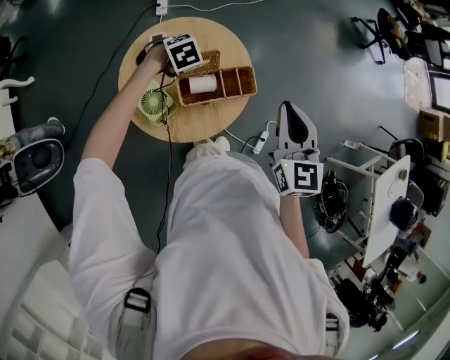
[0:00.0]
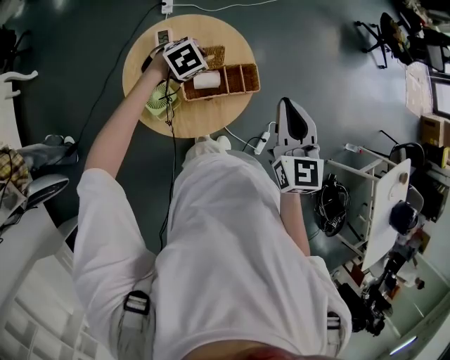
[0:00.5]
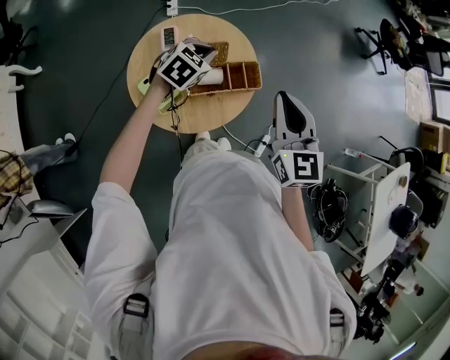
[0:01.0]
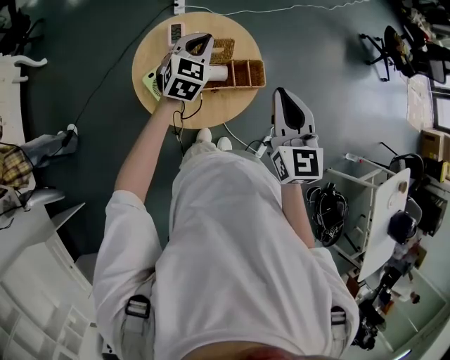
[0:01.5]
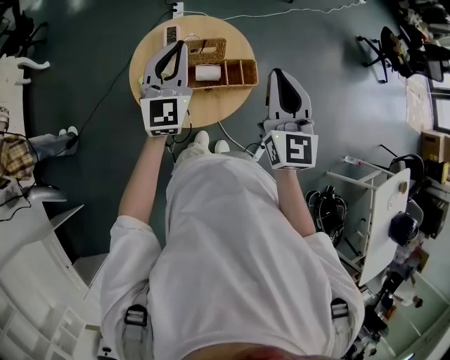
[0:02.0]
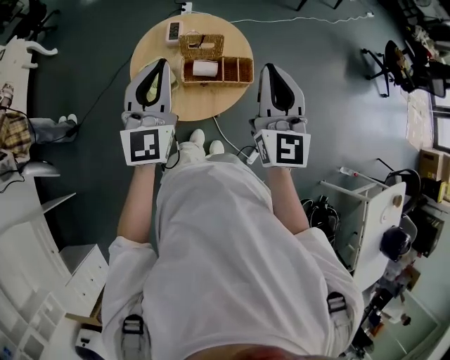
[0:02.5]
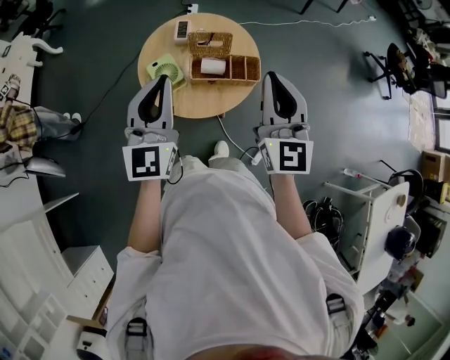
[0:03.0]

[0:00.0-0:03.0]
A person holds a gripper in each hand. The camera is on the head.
0:00.0 to 0:01.5: The right gripper moves about 5 cm. The left gripper travels upward by about 15 cm, and points its fingers roughly 50 degrees further upward.
0:01.5 to 0:03.0: The left gripper travels backward and upward by approximately 30 cm, and changes its angle by about 40 degrees; the right gripper heads backward and upward, covering roughly 10 cm.

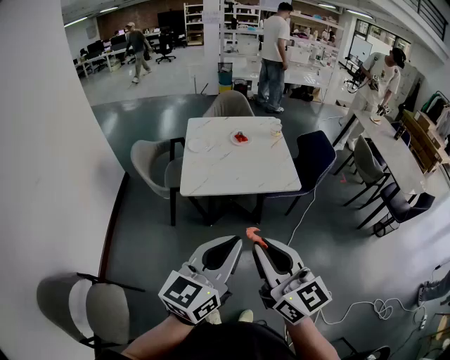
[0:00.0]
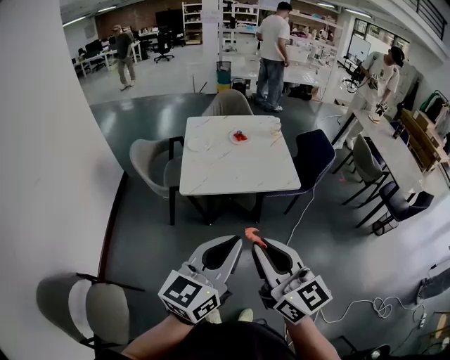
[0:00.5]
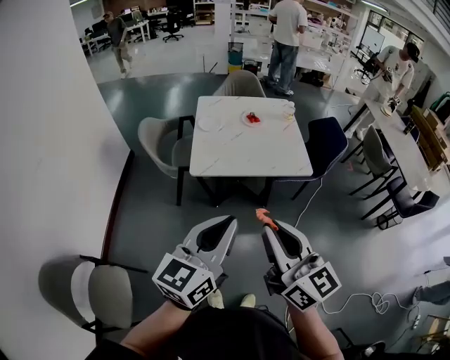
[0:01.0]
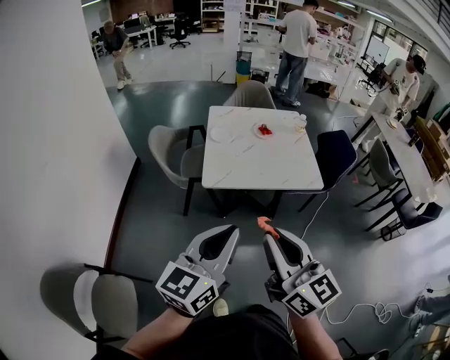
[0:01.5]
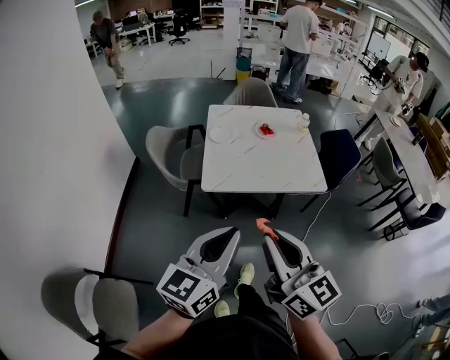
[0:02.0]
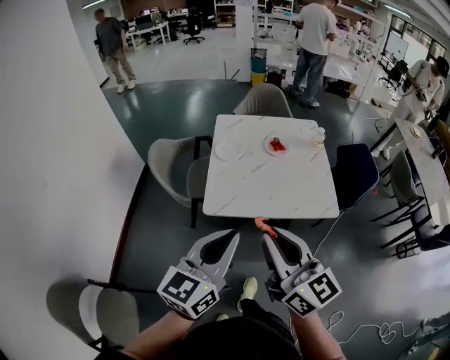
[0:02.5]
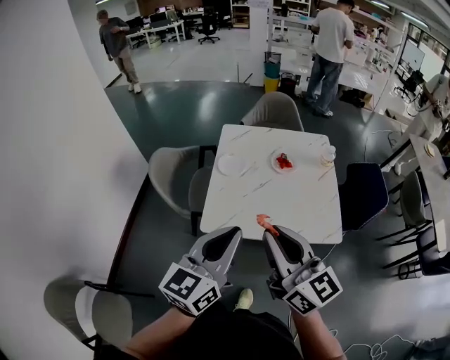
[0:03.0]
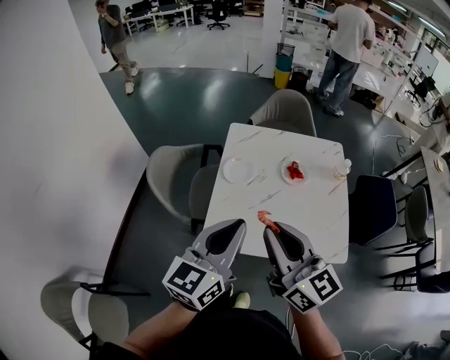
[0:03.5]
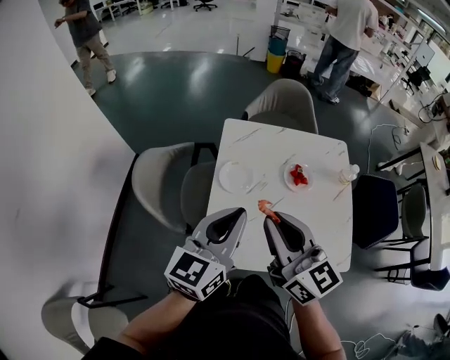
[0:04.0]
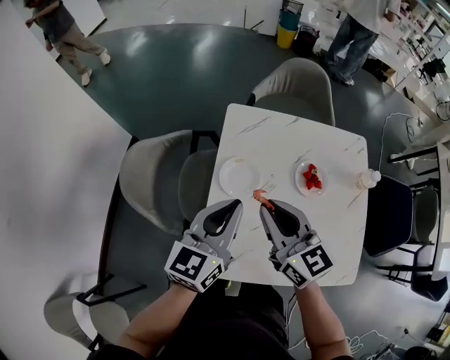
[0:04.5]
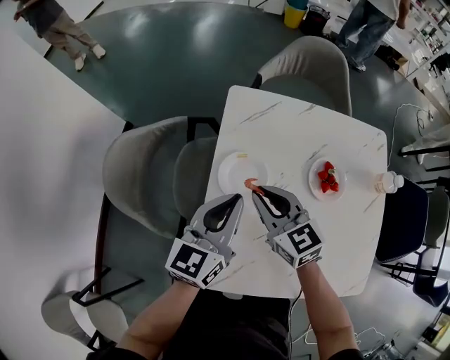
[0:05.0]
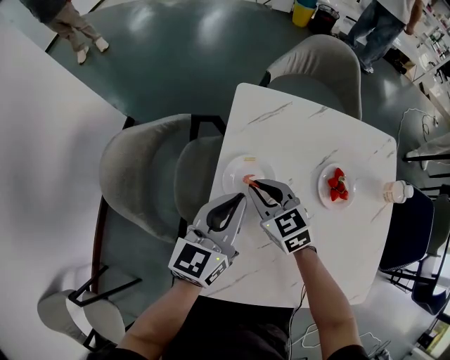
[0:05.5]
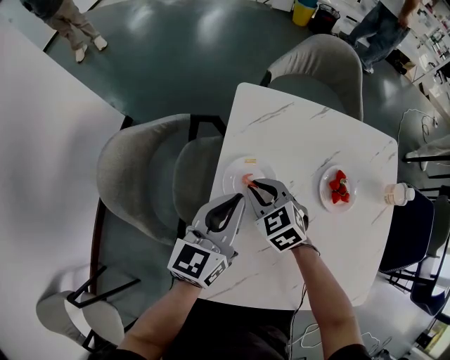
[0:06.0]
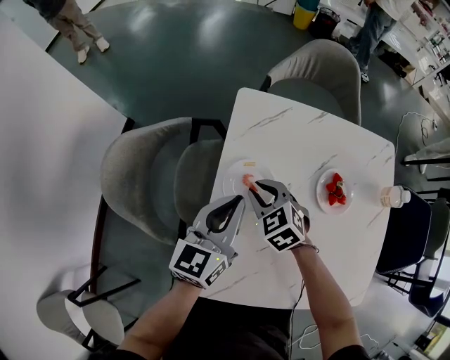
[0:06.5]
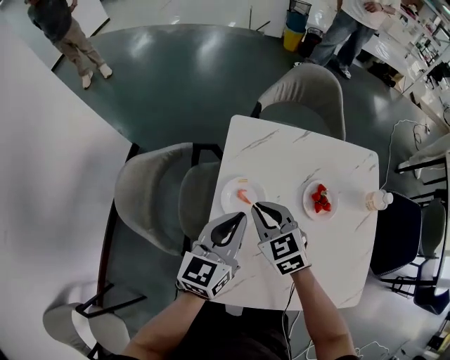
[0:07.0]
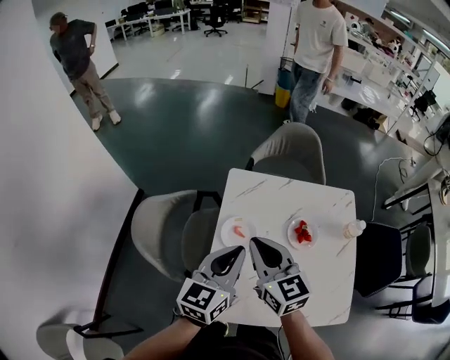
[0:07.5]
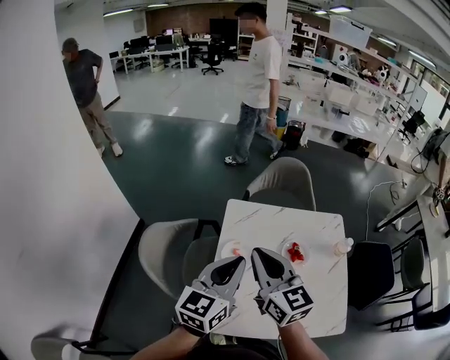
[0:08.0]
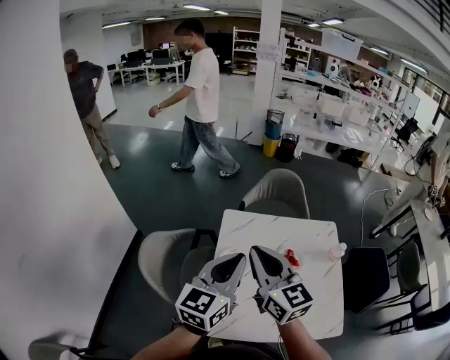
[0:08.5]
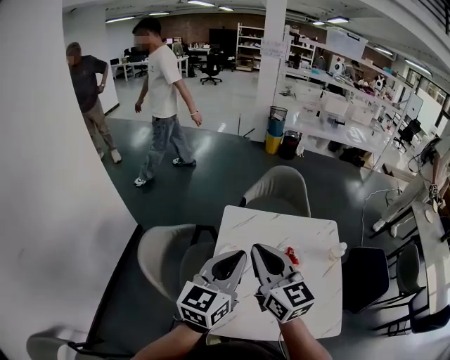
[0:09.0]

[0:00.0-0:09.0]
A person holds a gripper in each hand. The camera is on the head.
0:00.0 to 0:02.0: Both grippers travel together to the left and forward, some 15 cm.
0:02.0 to 0:04.5: The pair of grippers is taken forward, roughly 60 cm. The right gripper rotates roughly 20 degrees.
0:04.5 to 0:07.0: The right gripper goes about 15 cm downward and forward, and swivels some 30 degrees; the left gripper heads downward and forward, covering approximately 10 cm.
0:07.0 to 0:09.0: The grippers both shift upward by roughly 30 cm. The right gripper angles its fingers upward, by roughly 30 degrees.

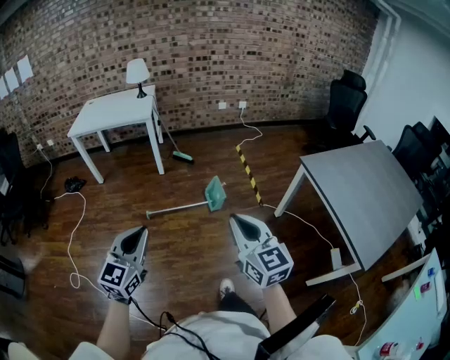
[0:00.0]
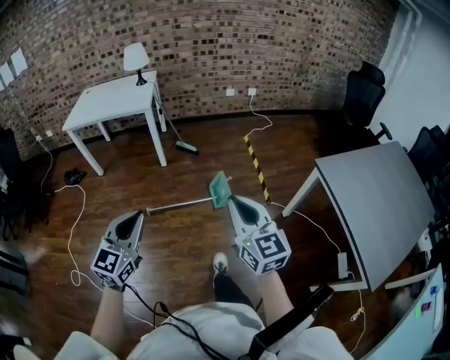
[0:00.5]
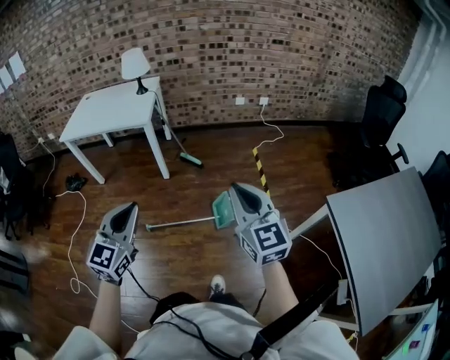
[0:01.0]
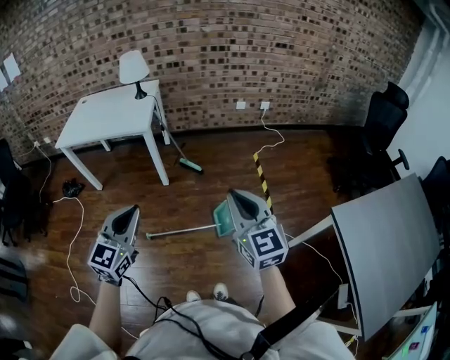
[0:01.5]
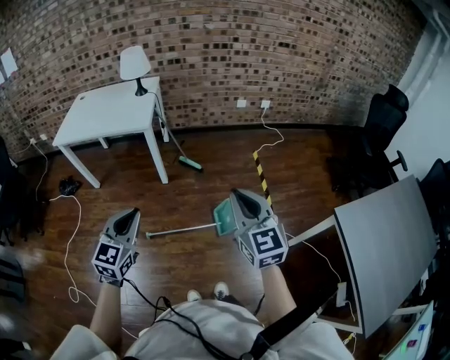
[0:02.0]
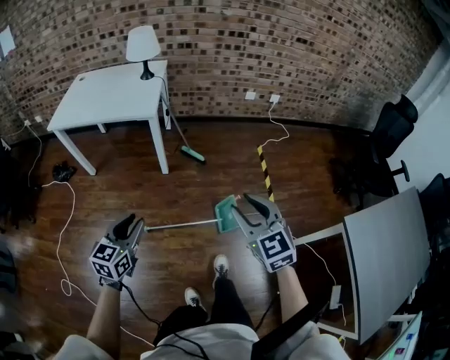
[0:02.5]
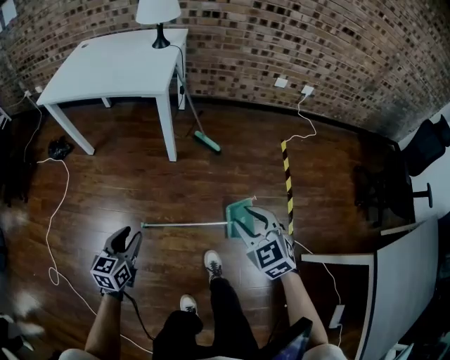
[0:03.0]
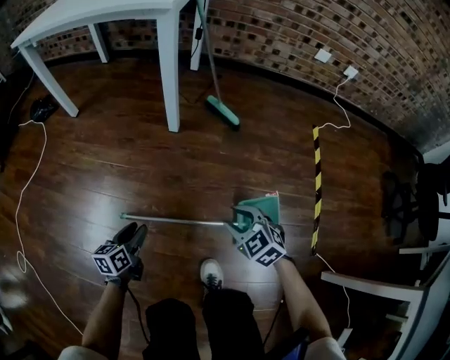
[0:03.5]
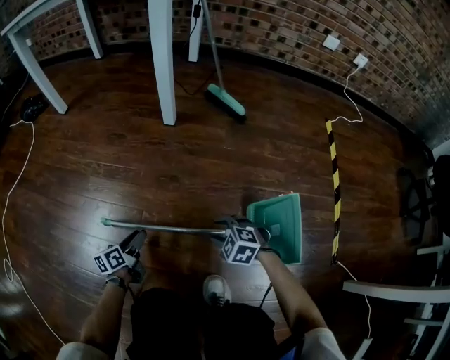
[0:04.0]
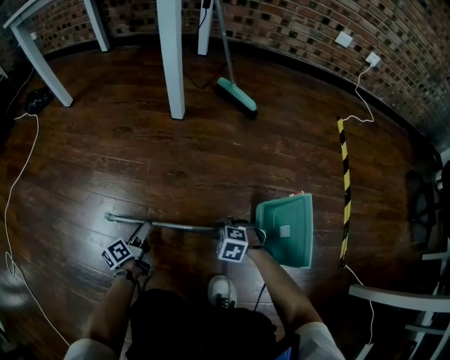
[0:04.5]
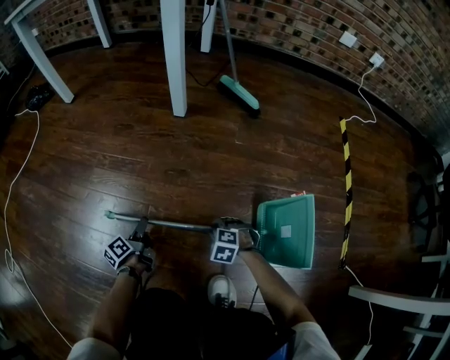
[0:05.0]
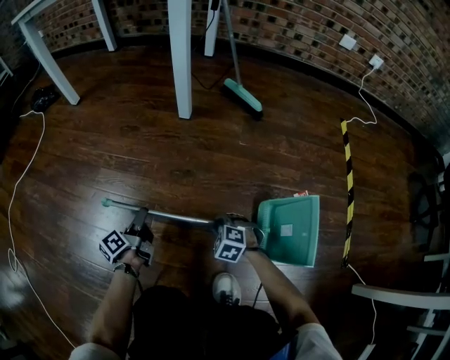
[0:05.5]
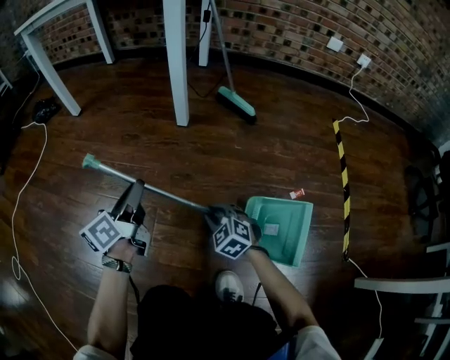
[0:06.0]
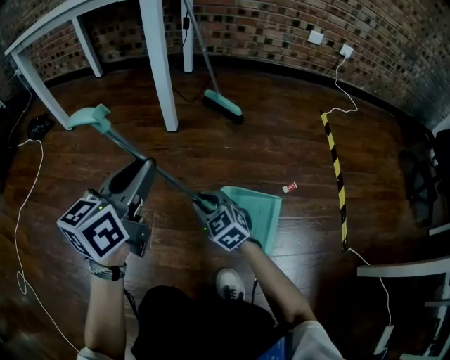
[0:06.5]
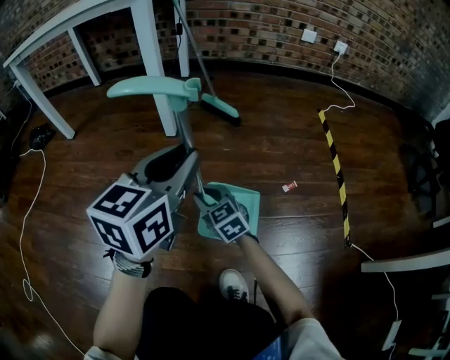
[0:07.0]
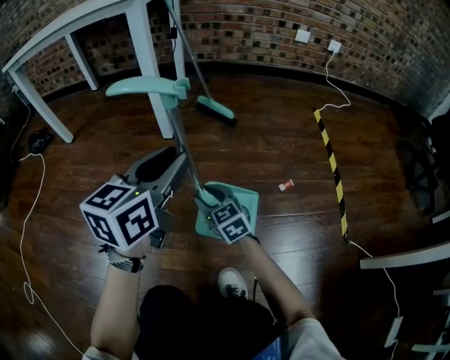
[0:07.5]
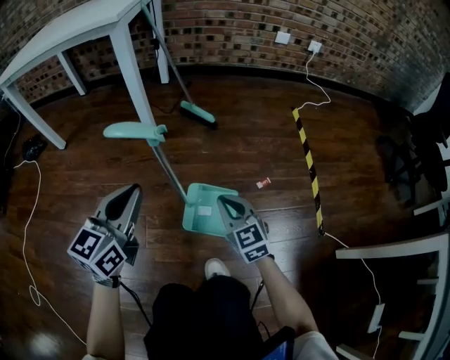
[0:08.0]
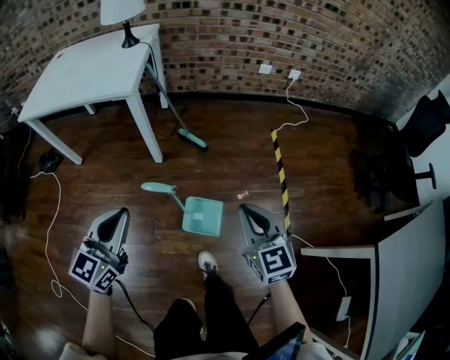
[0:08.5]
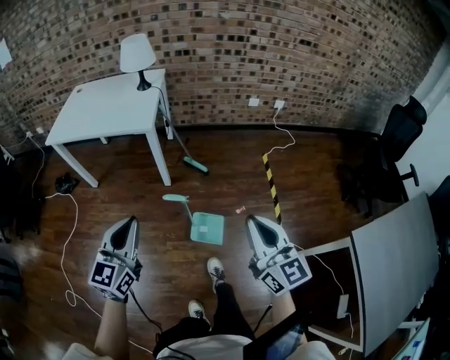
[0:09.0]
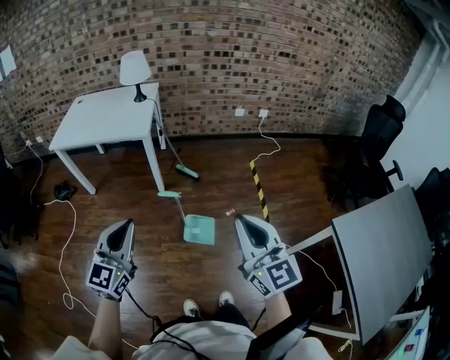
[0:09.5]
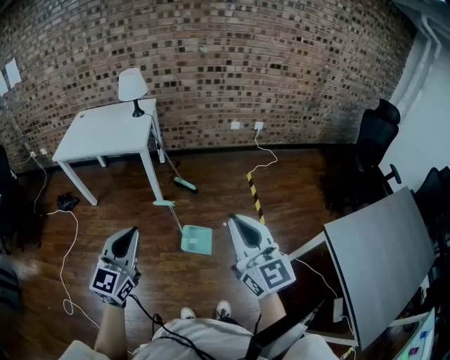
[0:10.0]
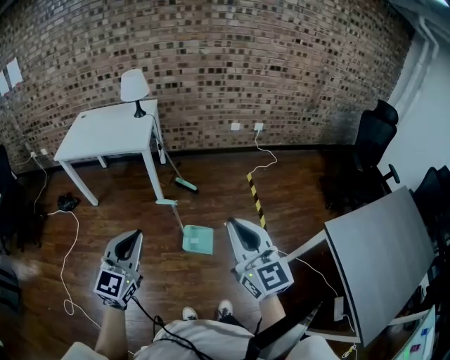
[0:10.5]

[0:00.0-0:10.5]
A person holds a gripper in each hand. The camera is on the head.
0:00.0 to 0:02.0: The pair of grippers is taken forward, roughly 40 cm.
0:02.0 to 0:04.0: The grippers both shift downward by roughly 1 m. The right gripper angles its fingers downward, by roughly 50 degrees, and opens its fingers, while the left gripper rolls counterclockwise, seen from behind, by approximately 70 degrees, and opens.
0:04.0 to 0:06.5: The right gripper goes about 15 cm upward and forward, turns by some 40 degrees, and closes; the left gripper goes about 40 cm upward, changes its angle by about 40 degrees, and closes up.
0:06.5 to 0:08.5: The left gripper is displaced upward by about 35 cm, and rotates approximately 20 degrees. The right gripper travels upward by about 60 cm, and rotates roughly 30 degrees.
0:08.5 to 0:10.5: The grippers both shift upward and backward by approximately 40 cm. The right gripper rotates some 20 degrees.

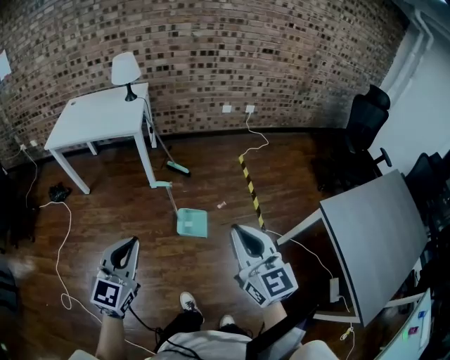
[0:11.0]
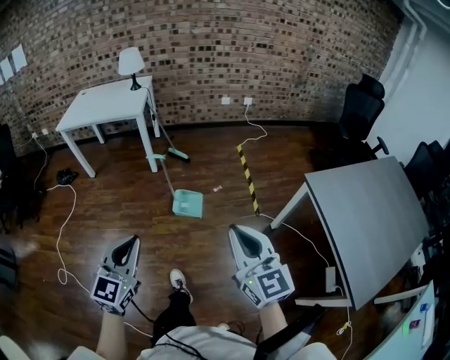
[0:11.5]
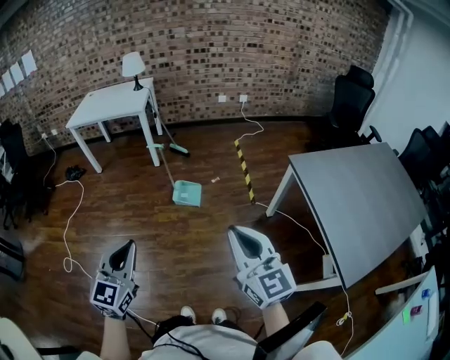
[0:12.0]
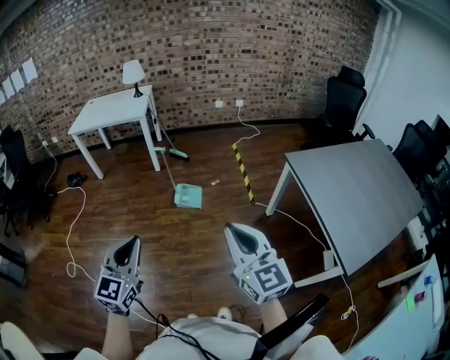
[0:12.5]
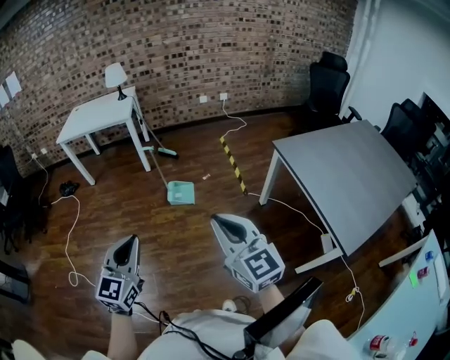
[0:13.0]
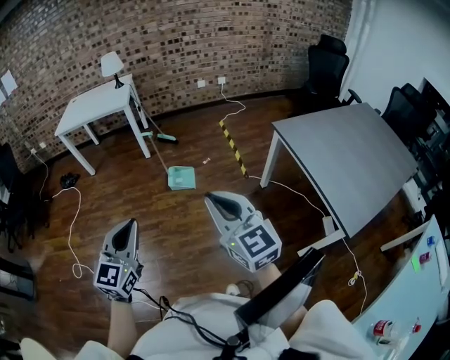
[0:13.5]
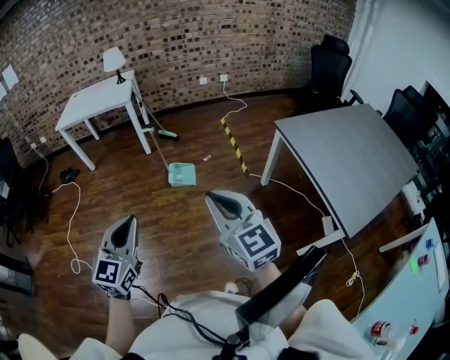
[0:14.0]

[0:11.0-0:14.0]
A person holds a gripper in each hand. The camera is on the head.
0:11.0 to 0:12.5: Both grippers are carried backward, roughly 40 cm.
0:12.5 to 0:14.0: The grippers stay close to where they were, moving slightly.
